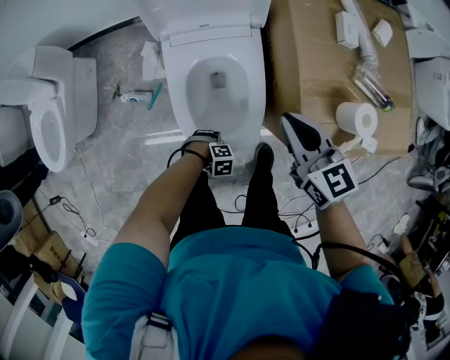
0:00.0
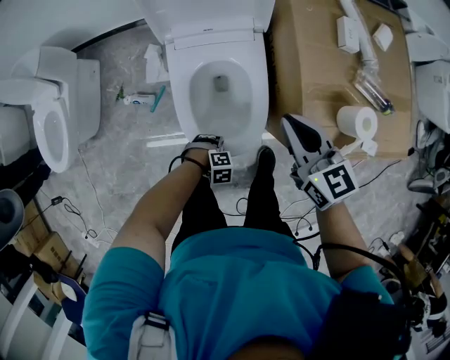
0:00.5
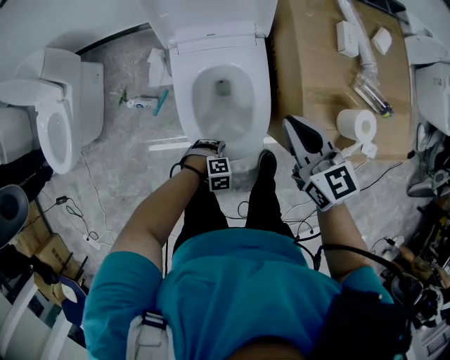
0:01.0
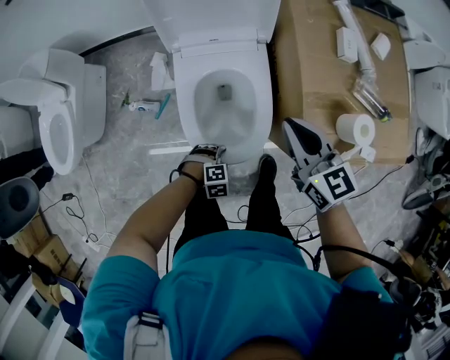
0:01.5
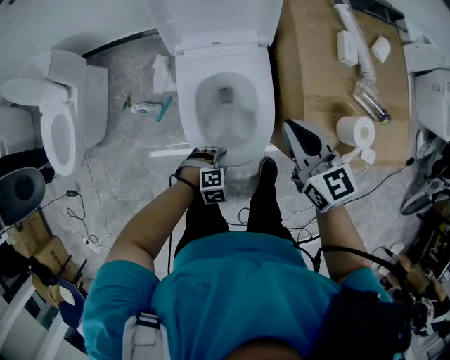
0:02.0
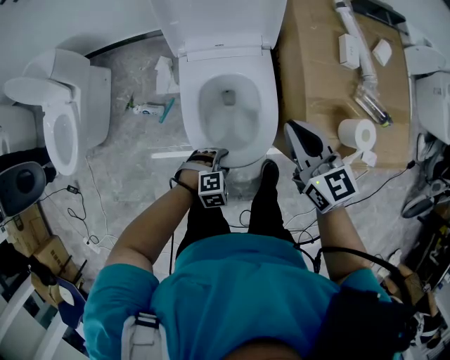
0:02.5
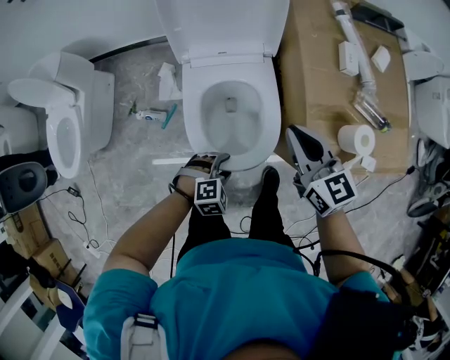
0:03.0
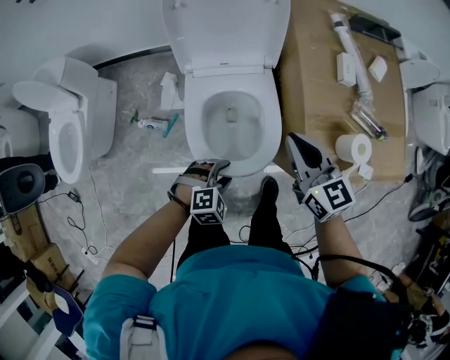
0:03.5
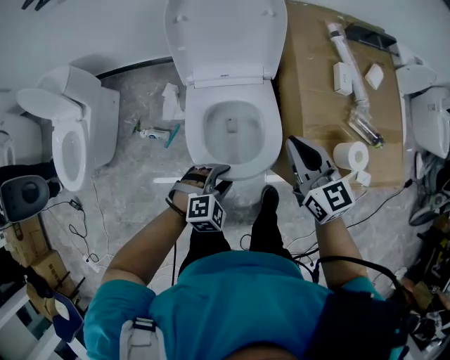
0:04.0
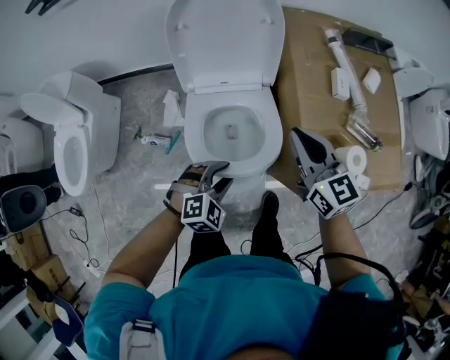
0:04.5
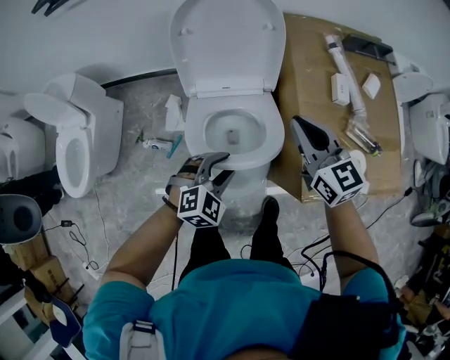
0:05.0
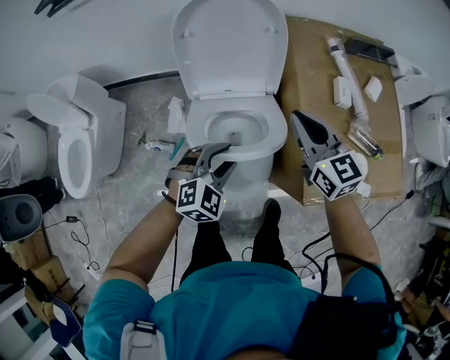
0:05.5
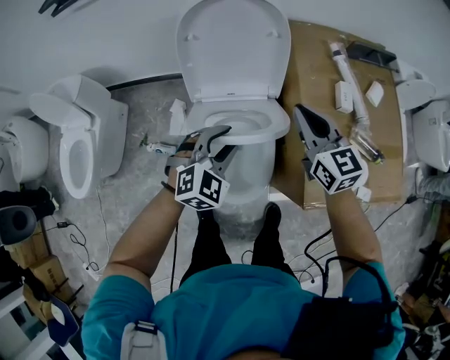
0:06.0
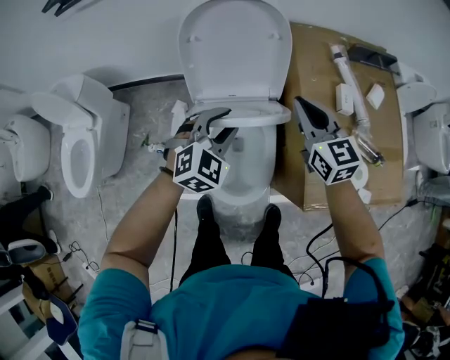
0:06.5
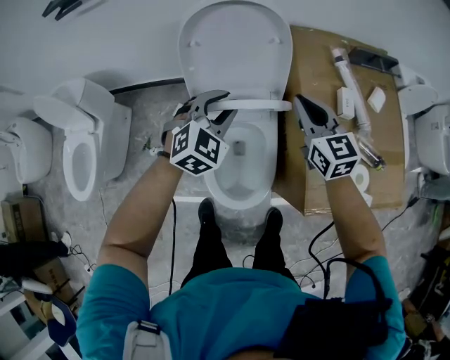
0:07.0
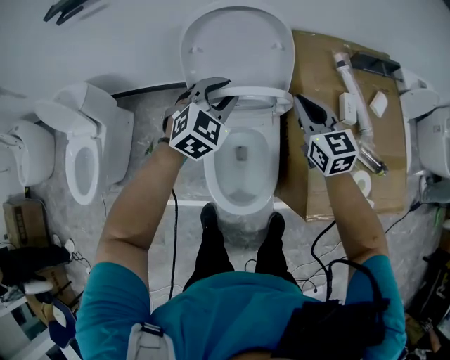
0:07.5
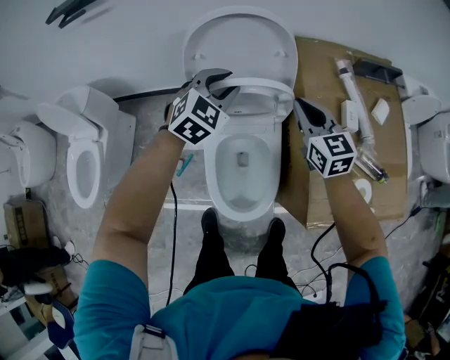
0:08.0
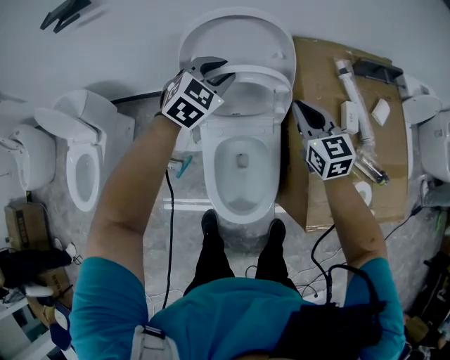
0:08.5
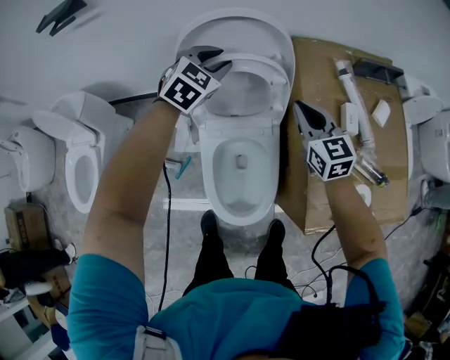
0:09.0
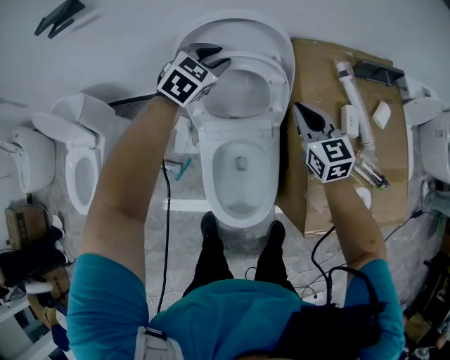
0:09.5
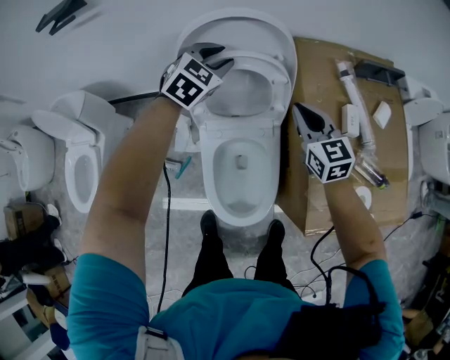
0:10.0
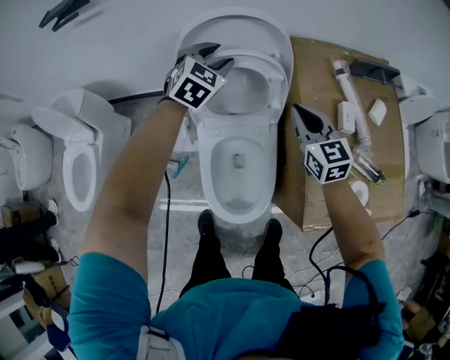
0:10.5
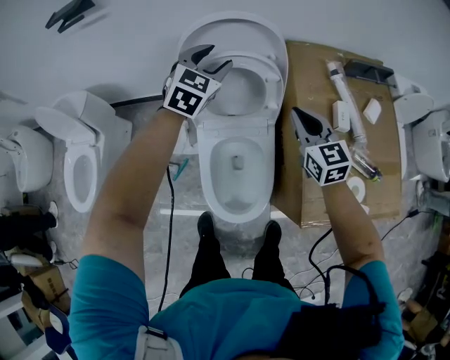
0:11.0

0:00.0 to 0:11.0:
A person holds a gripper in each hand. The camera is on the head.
0:00.0 to 0:02.0: The left gripper shifts roughly 10 cm upward, and turns by about 20 degrees.
0:02.0 to 0:03.5: The left gripper goes about 10 cm upward.
0:03.5 to 0:05.5: The right gripper is displaced forward and upward by about 10 cm; the left gripper goes roughly 20 cm upward and forward, and turns by some 20 degrees.
0:05.5 to 0:07.5: The right gripper goes approximately 10 cm forward. Meanwhile the left gripper travels forward by about 20 cm.
0:07.5 to 0:09.0: The left gripper shifts some 15 cm forward.
0:09.0 to 0:11.0: The left gripper changes place by some 5 cm.

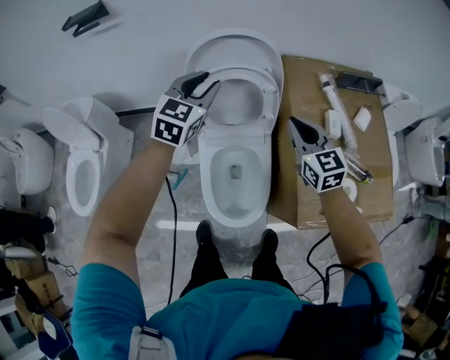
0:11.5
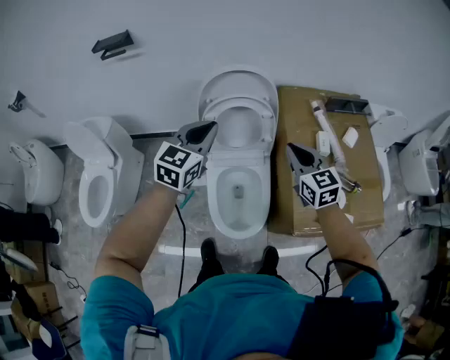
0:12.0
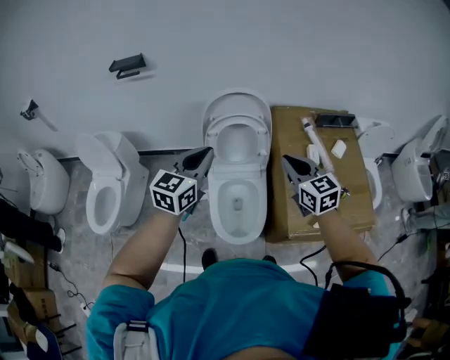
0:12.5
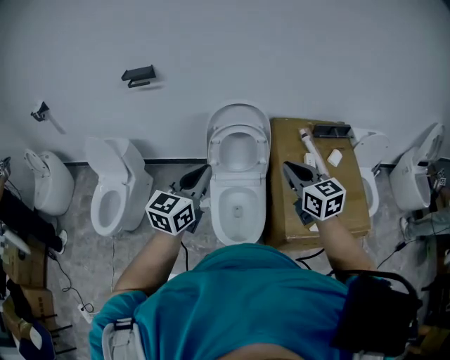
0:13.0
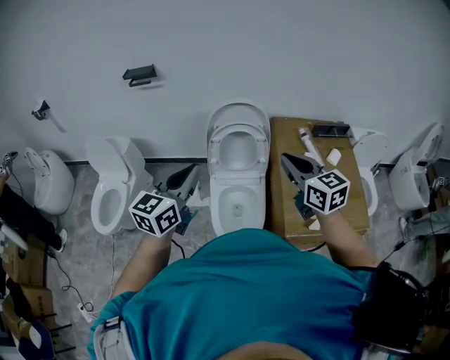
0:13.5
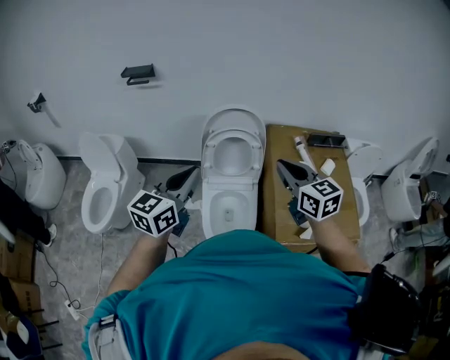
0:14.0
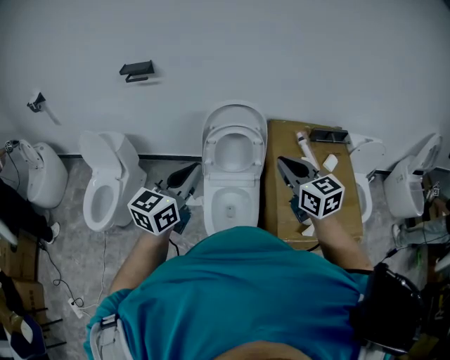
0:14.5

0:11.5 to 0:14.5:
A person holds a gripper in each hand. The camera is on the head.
0:11.5 to 0:13.0: The right gripper shifts roughly 30 cm upward and backward; the left gripper moves backward and upward, some 35 cm, rotates approximately 20 degrees, and closes up.
0:13.0 to 0:14.5: The grippers move only a little.

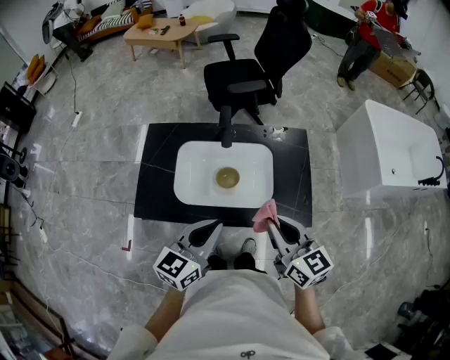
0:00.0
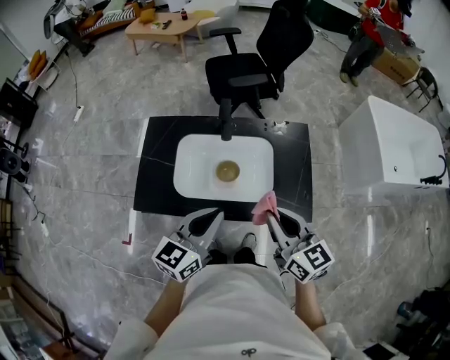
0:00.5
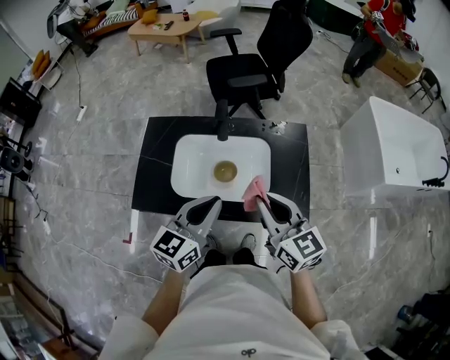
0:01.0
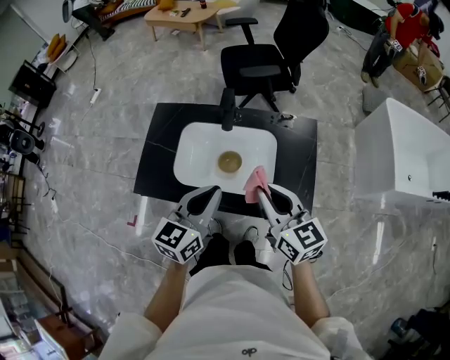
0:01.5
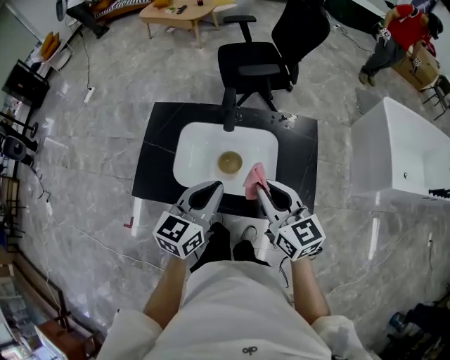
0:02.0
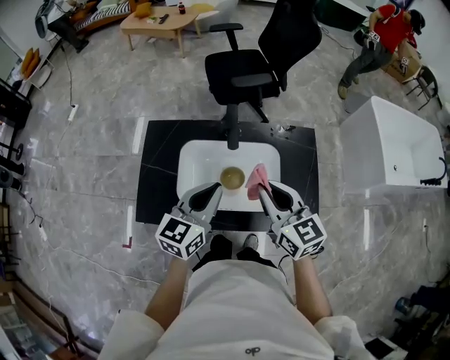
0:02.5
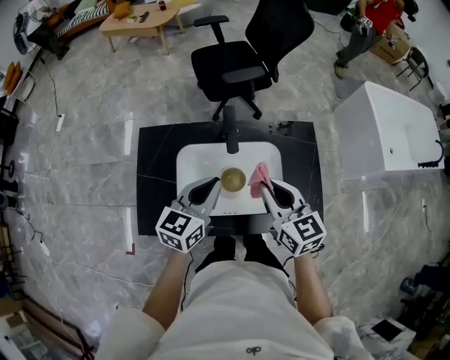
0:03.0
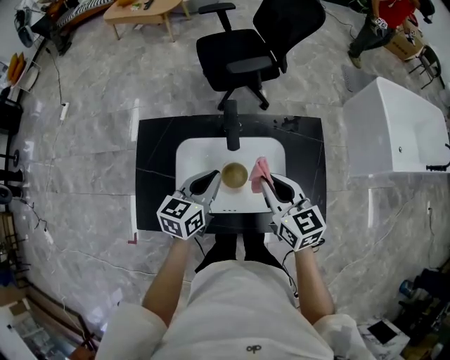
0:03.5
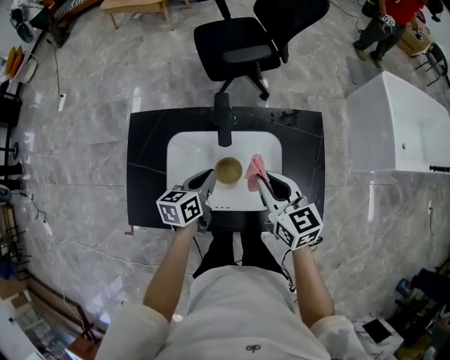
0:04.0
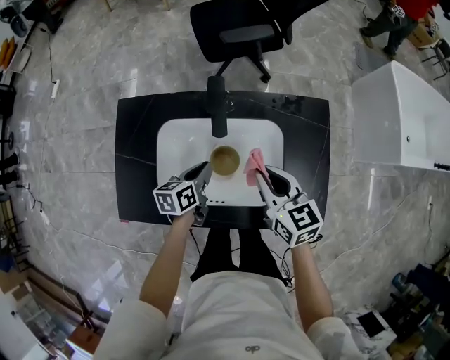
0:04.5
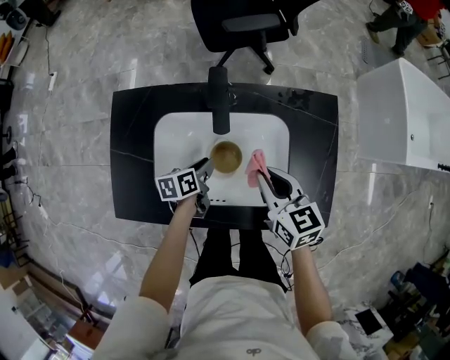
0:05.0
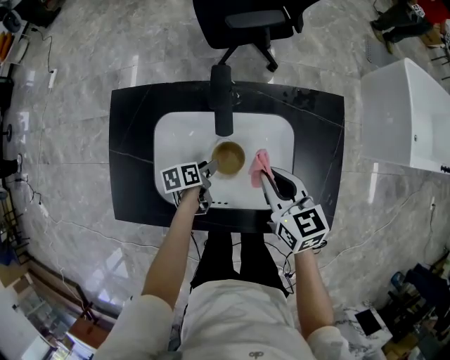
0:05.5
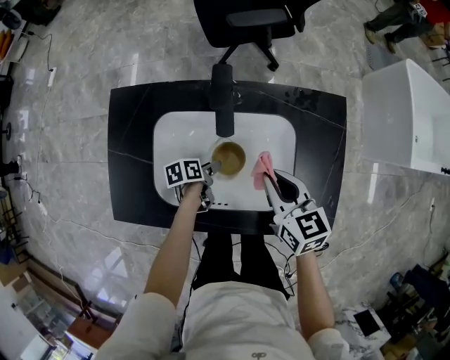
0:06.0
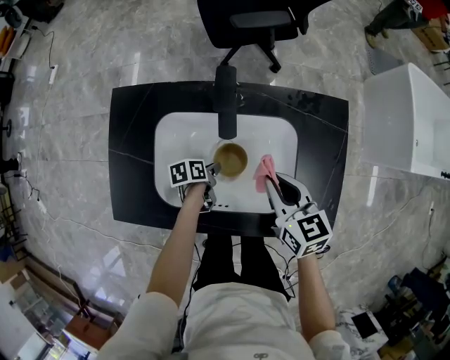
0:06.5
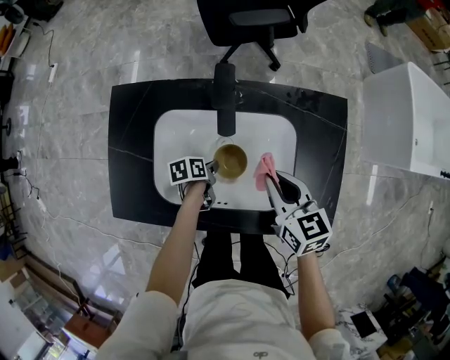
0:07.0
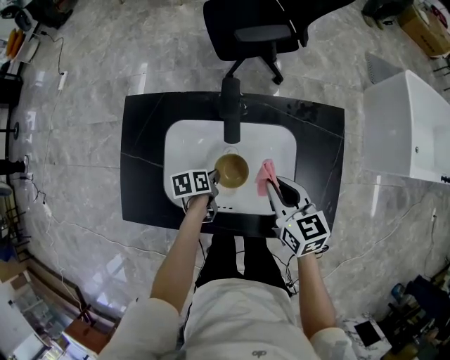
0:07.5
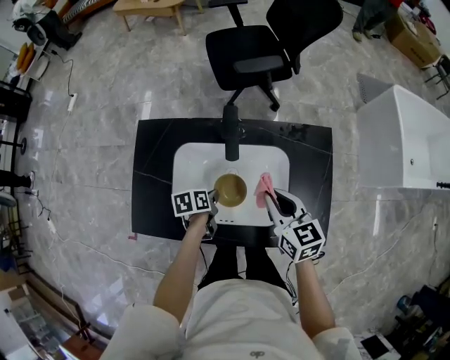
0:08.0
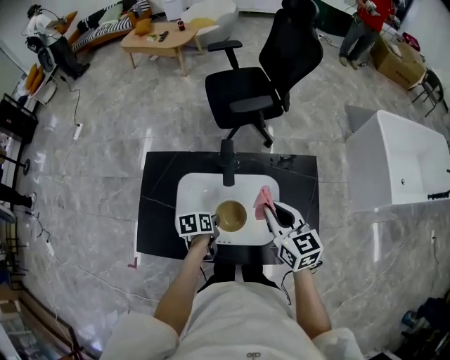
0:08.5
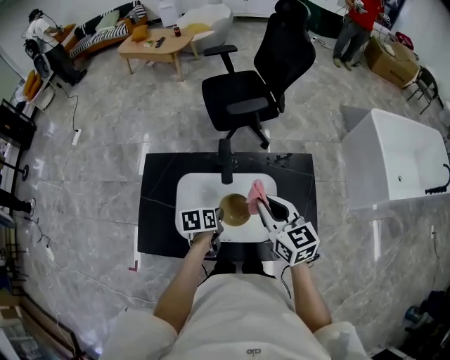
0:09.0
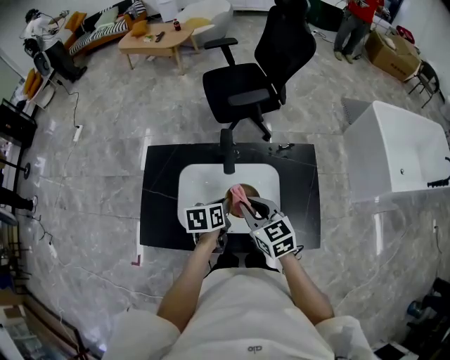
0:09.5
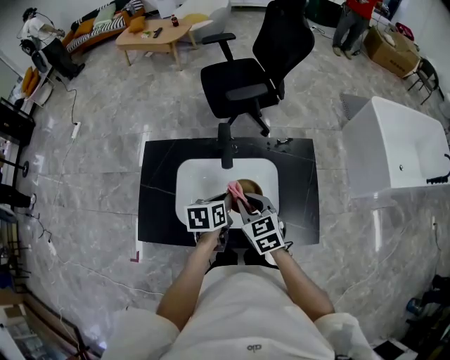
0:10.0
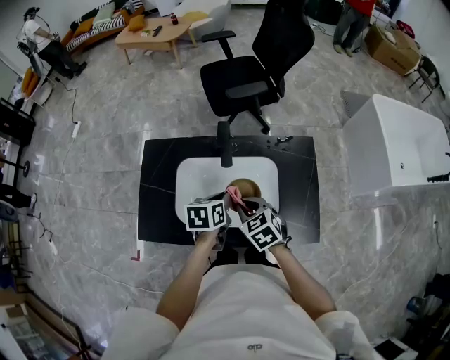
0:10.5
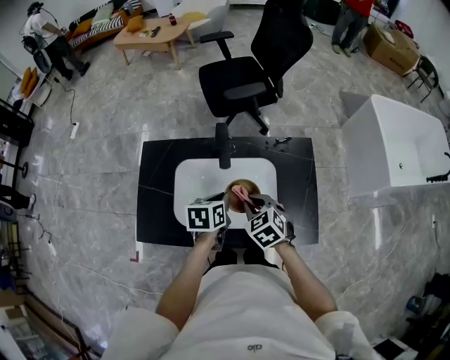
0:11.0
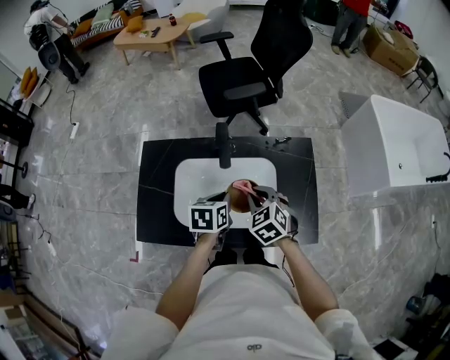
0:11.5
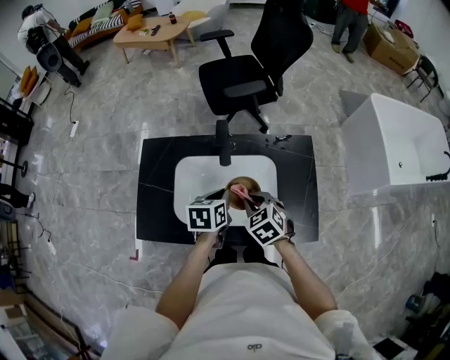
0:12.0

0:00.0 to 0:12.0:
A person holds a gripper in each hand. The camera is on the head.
0:00.0 to 0:02.0: The grippers both shift forward by some 5 cm.
0:02.0 to 0:04.0: The left gripper goes approximately 20 cm downward and forward, and rotates some 30 degrees. Meanwhile the right gripper heads forward and downward, covering approximately 15 cm.
0:04.0 to 0:06.0: The right gripper travels downward by roughly 10 cm. Meanwhile the left gripper moves downward, about 25 cm, rotates roughly 40 degrees, and opens.
0:06.0 to 0:08.0: The right gripper is displaced upward by about 5 cm; the left gripper moves upward, approximately 10 cm, and closes its fingers.
0:08.0 to 0:10.0: The right gripper is displaced to the left by about 5 cm, and goes upward and returns, about 10 cm each way; the left gripper is displaced upward by roughly 15 cm, and rotates some 20 degrees.

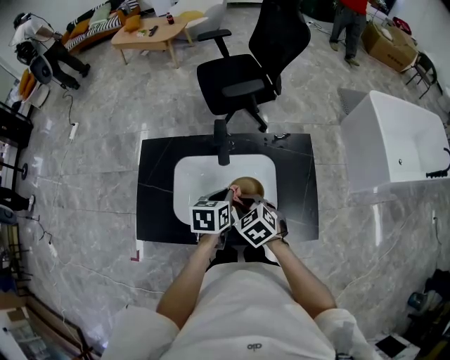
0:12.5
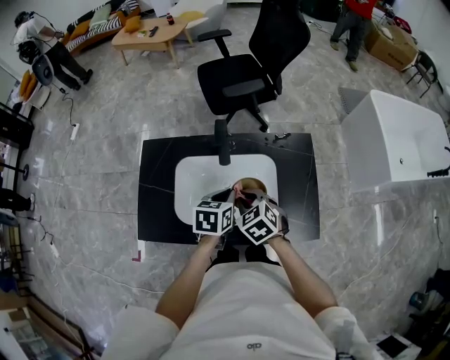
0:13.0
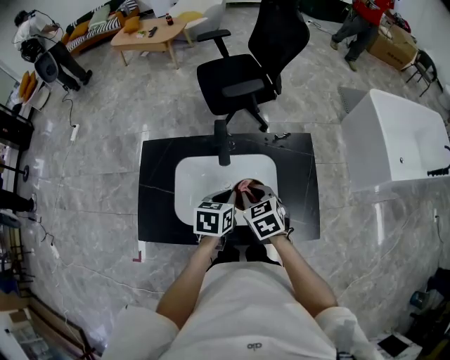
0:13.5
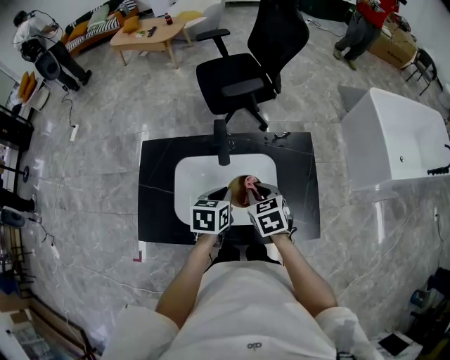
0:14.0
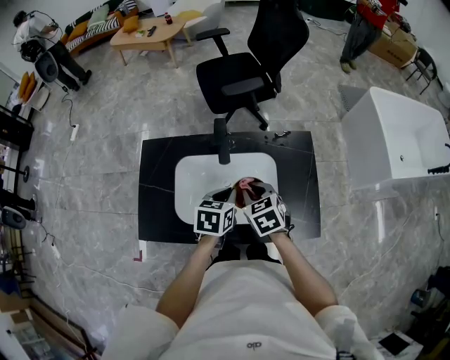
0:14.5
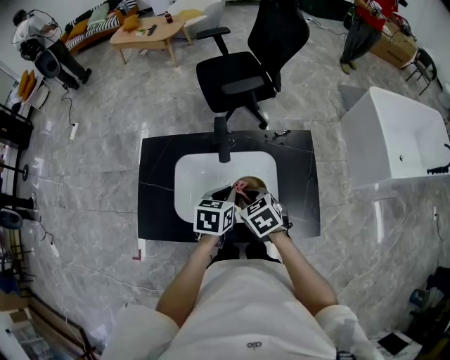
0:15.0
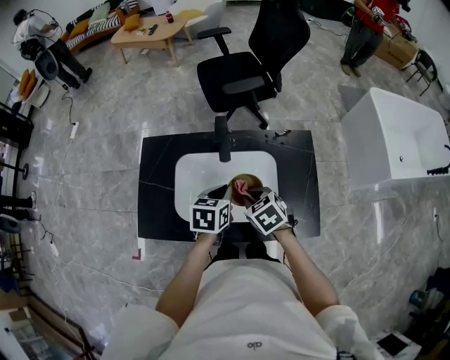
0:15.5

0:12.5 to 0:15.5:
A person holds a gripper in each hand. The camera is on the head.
0:12.5 to 0:14.0: The right gripper shifts by approximately 5 cm, and swivels about 20 degrees.
0:14.0 to 0:15.5: The grippers stay close to where they were, moving slightly.
